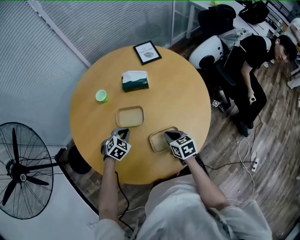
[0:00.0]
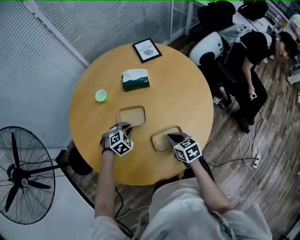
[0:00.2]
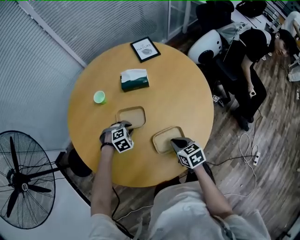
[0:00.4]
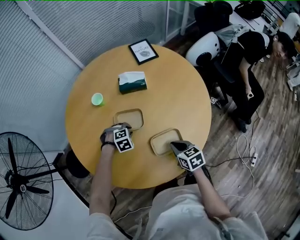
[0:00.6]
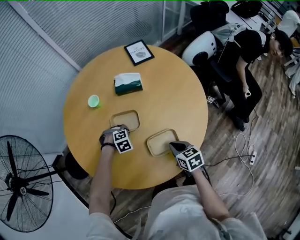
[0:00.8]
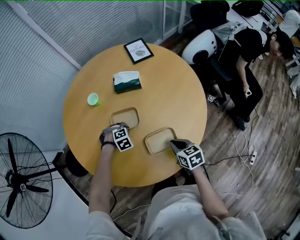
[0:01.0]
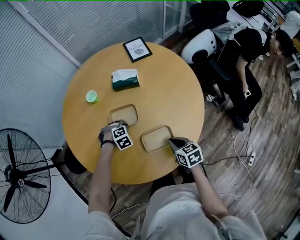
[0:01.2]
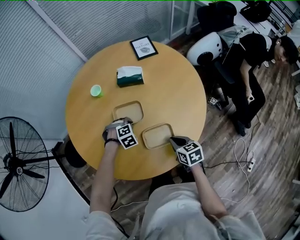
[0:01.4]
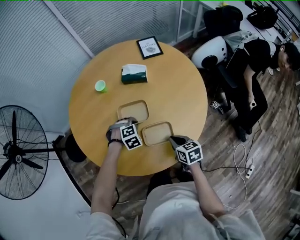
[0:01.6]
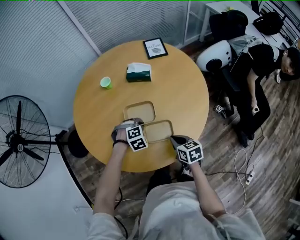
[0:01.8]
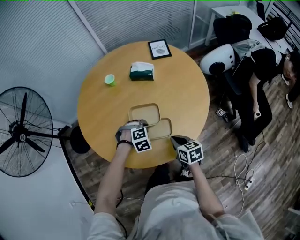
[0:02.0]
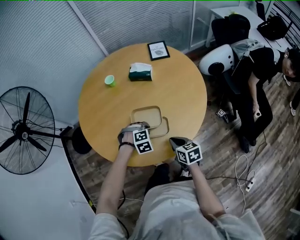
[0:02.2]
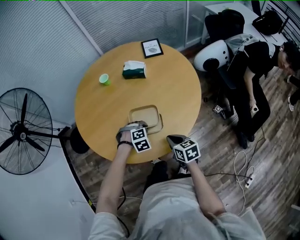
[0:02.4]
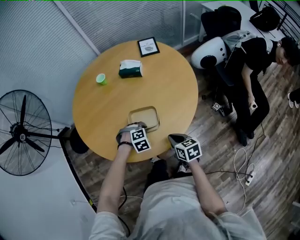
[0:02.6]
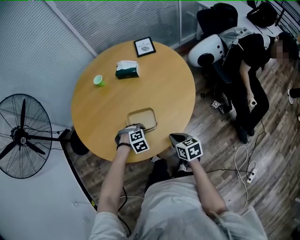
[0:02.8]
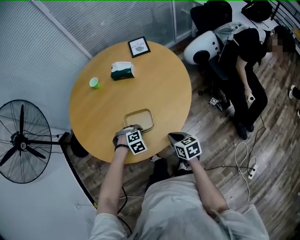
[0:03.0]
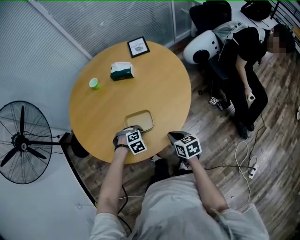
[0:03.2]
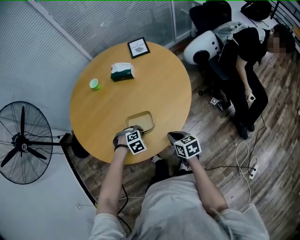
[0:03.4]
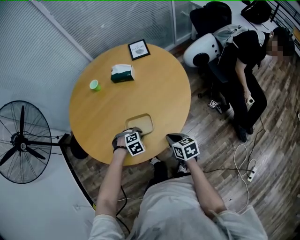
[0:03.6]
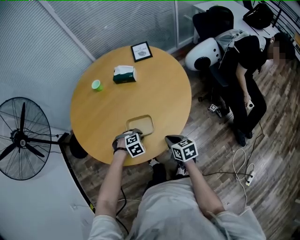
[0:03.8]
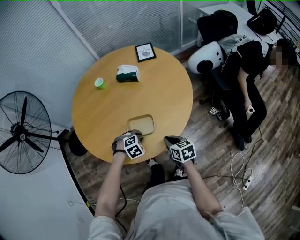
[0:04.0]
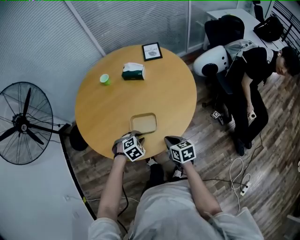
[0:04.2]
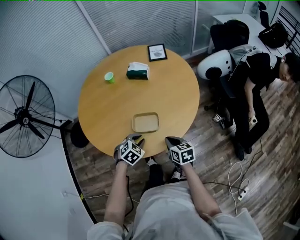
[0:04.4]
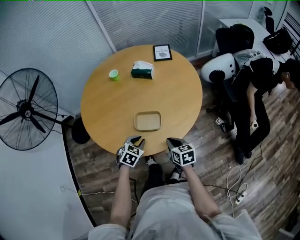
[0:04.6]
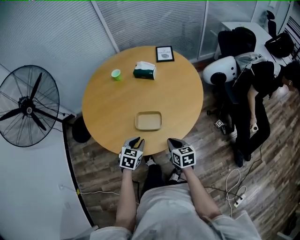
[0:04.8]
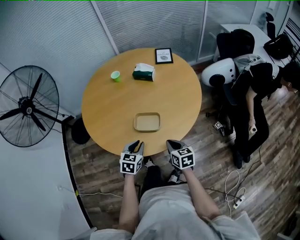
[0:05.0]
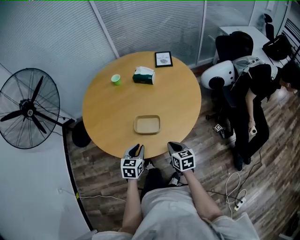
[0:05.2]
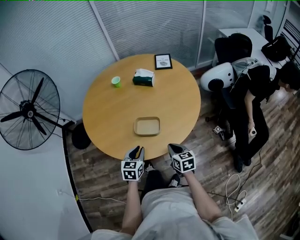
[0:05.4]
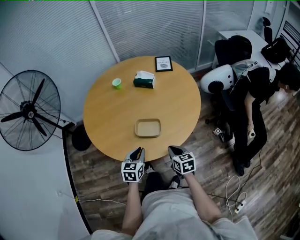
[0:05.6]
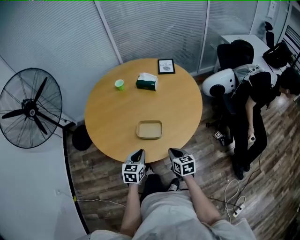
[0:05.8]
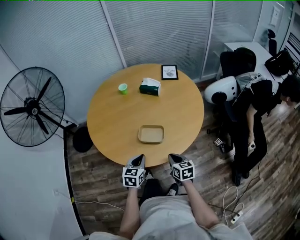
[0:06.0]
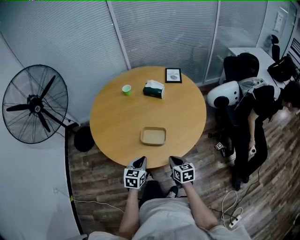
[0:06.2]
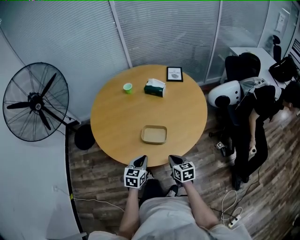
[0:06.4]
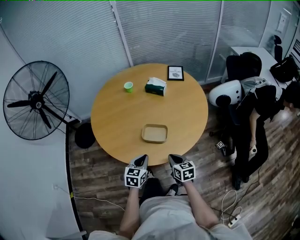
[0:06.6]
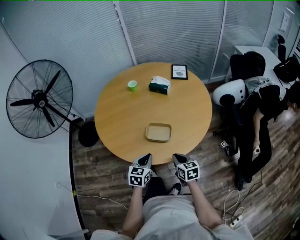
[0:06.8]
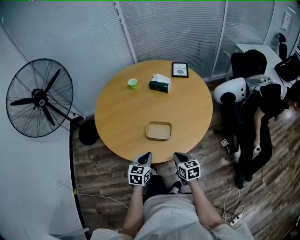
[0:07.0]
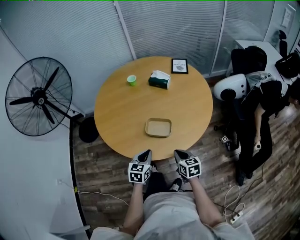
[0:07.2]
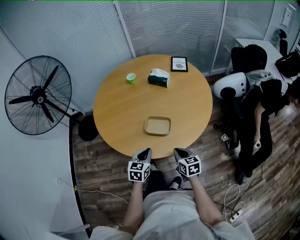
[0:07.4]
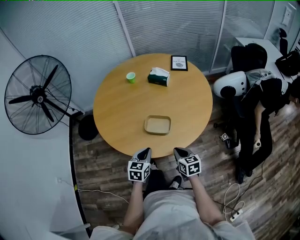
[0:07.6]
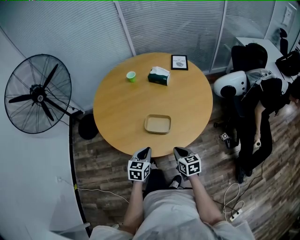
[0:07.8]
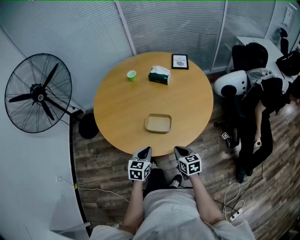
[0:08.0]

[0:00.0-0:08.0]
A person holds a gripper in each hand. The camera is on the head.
0:00.0 to 0:01.6: The right gripper moves approximately 10 cm; the left gripper goes downward and returns, some 10 cm each way, and changes its angle by some 30 degrees.
0:01.6 to 0:03.2: The right gripper ends up some 10 cm from where it was. The left gripper moves about 15 cm.
0:03.2 to 0:04.8: The left gripper heads upward, covering some 10 cm, and twists about 60 degrees counterclockwise, seen from behind.
0:04.8 to 0:06.4: There are only small adjustments of the grippers.
0:06.4 to 0:08.0: Both grippers stay about where they are.

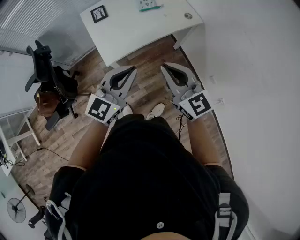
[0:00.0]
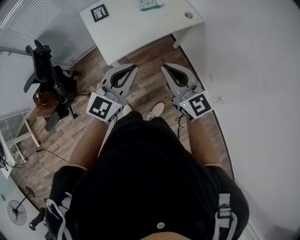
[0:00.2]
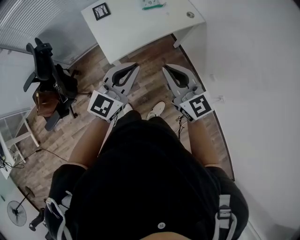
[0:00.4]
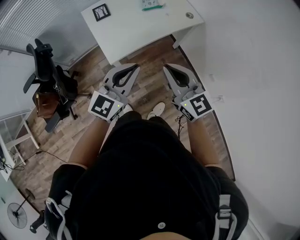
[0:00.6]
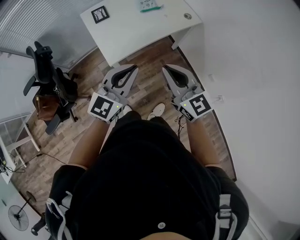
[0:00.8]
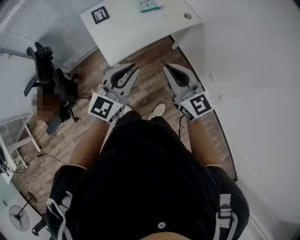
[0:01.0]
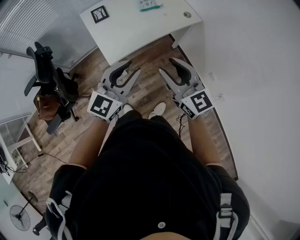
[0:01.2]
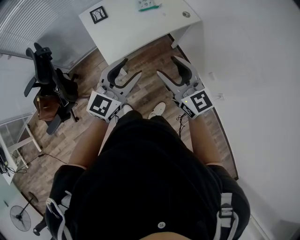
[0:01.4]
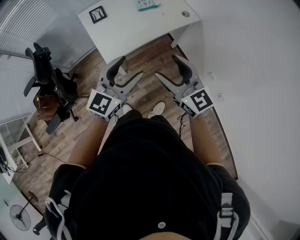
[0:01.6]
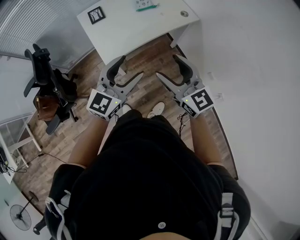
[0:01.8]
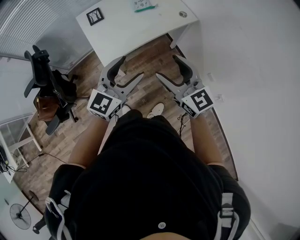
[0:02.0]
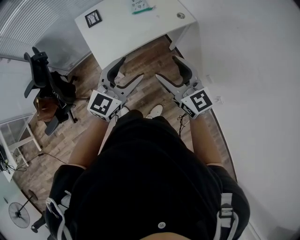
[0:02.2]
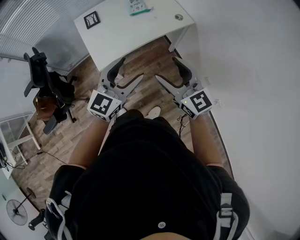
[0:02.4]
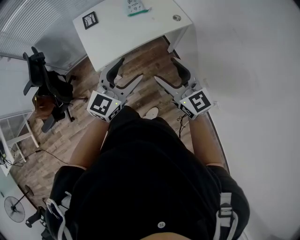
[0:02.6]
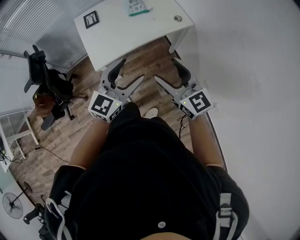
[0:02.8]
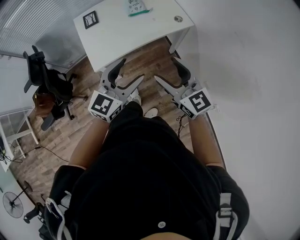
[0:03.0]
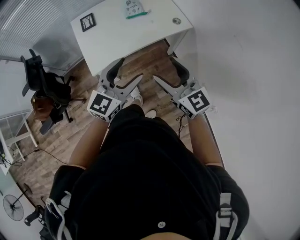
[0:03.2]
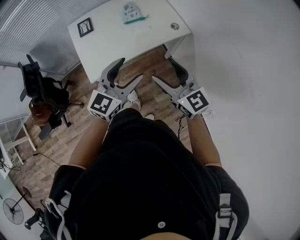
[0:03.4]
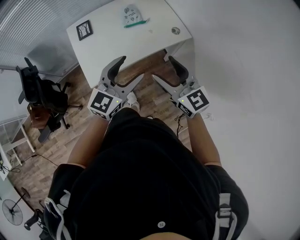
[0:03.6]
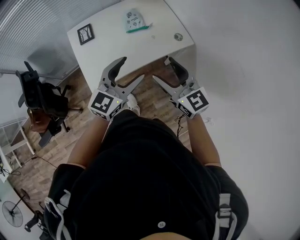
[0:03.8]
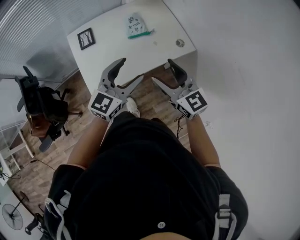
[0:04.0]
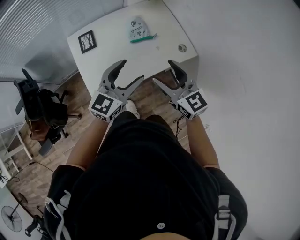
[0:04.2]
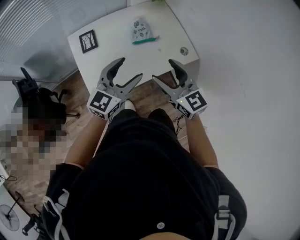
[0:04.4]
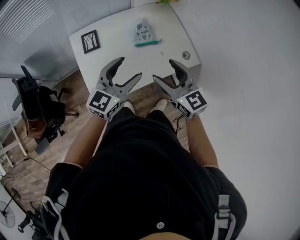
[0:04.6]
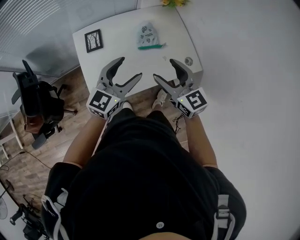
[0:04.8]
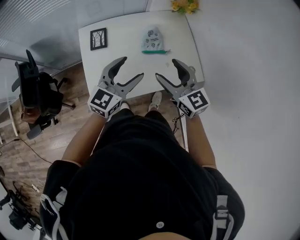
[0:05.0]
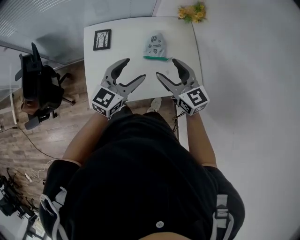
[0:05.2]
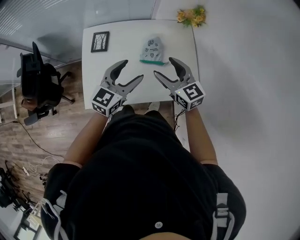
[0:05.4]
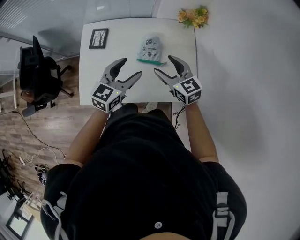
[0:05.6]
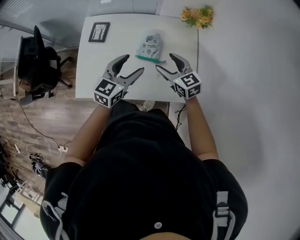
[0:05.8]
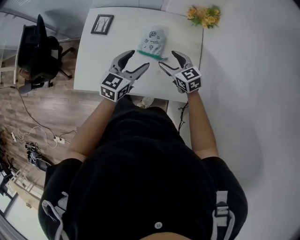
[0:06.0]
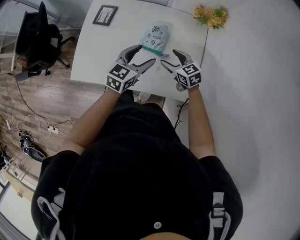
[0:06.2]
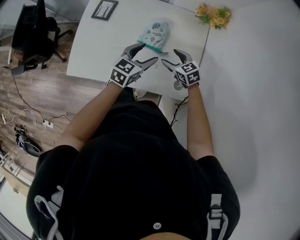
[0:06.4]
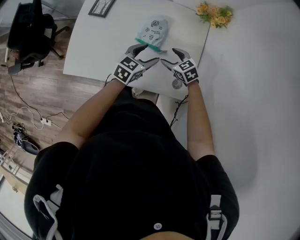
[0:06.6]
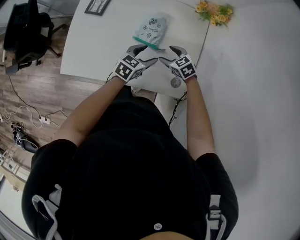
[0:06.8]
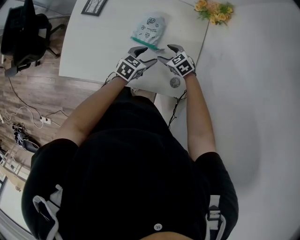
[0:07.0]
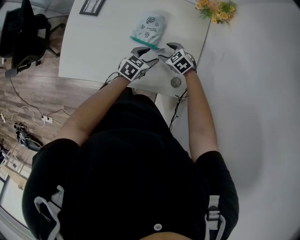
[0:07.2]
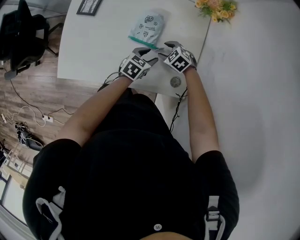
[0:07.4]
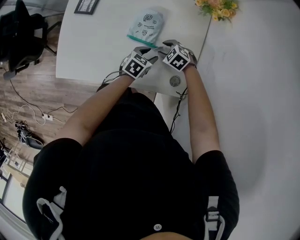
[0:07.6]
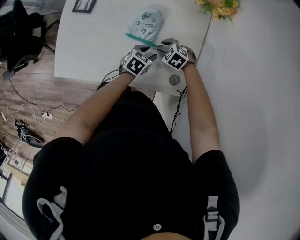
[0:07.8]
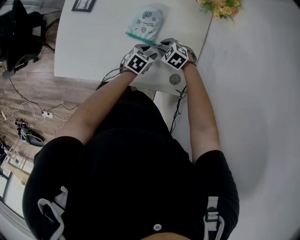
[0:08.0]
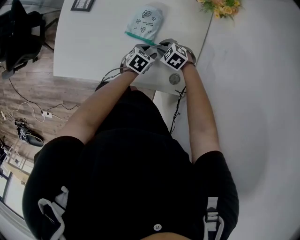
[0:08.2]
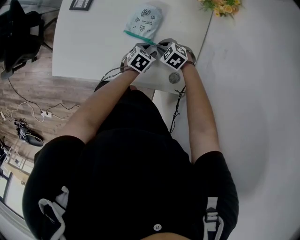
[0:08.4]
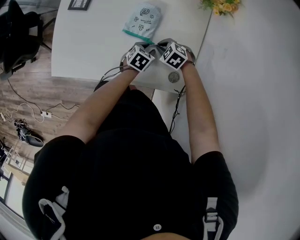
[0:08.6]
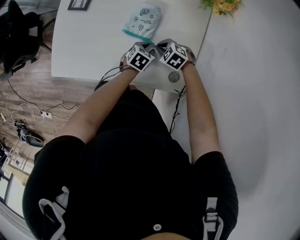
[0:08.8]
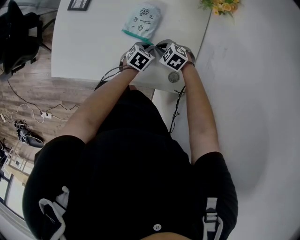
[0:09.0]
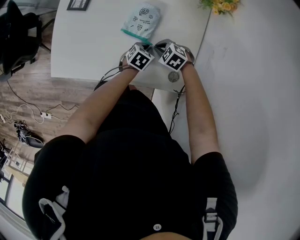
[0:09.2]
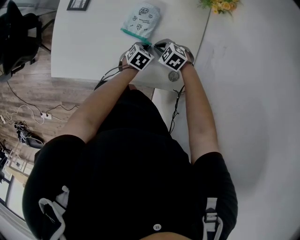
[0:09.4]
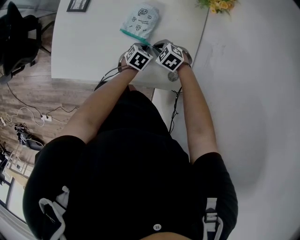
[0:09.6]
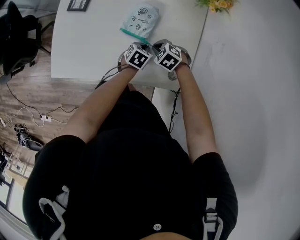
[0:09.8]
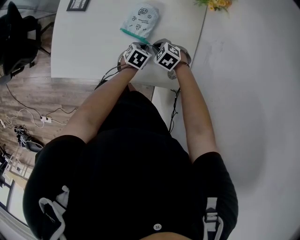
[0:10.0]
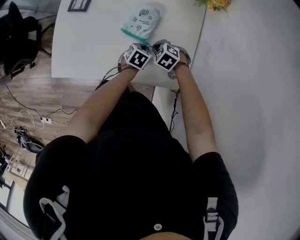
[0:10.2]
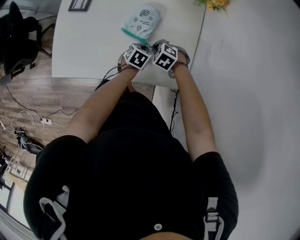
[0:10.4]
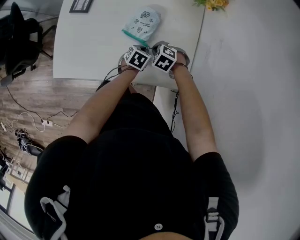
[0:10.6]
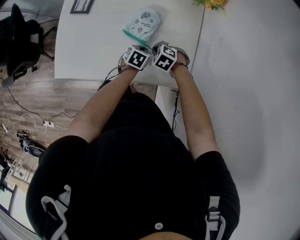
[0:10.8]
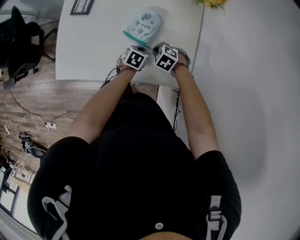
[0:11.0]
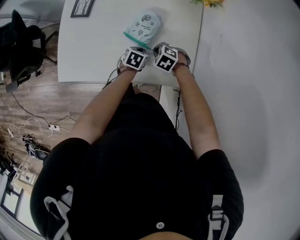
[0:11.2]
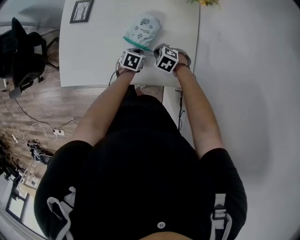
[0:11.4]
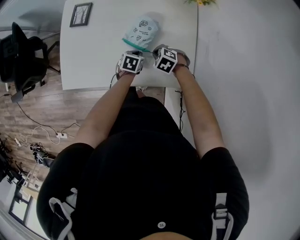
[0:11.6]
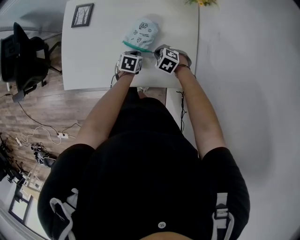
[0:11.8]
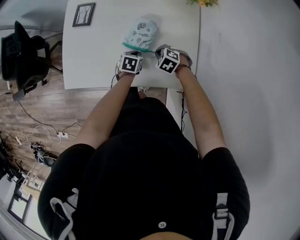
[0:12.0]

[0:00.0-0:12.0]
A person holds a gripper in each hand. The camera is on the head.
0:00.0 to 0:01.6: The right gripper opens its fingers. The left gripper opens its fingers.
0:01.6 to 0:03.0: Both grippers travel together to the right, approximately 15 cm.
0:03.0 to 0:04.4: Both grippers travel together forward, approximately 25 cm.
0:04.4 to 0:06.0: The right gripper ends up about 35 cm from where it was, and turns by some 40 degrees, while the left gripper shifts by some 25 cm, and turns by about 40 degrees.
0:06.0 to 0:07.6: Both grippers move downward, roughly 20 cm. The left gripper rotates roughly 30 degrees, and closes. Meanwhile the right gripper tilts its fingers about 30 degrees downward, and closes.
0:07.6 to 0:09.0: The right gripper closes.
0:09.0 to 0:10.4: The grippers stay close to where they were, moving slightly.
0:10.4 to 0:12.0: The left gripper ends up roughly 5 cm from where it was.

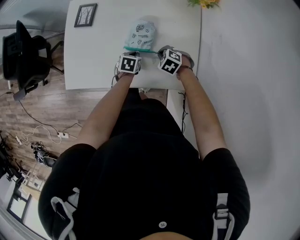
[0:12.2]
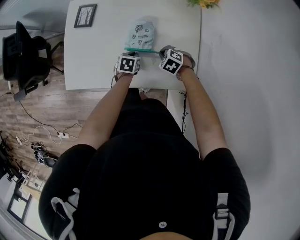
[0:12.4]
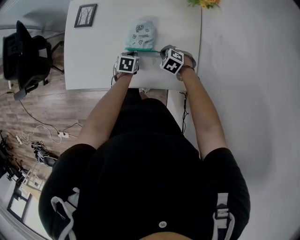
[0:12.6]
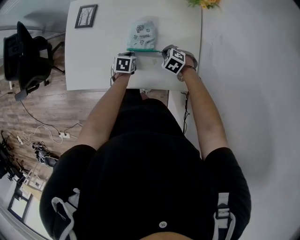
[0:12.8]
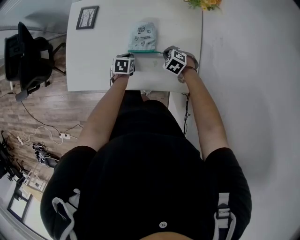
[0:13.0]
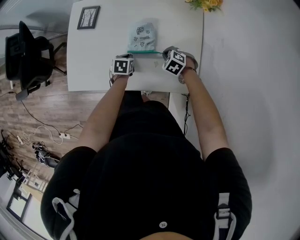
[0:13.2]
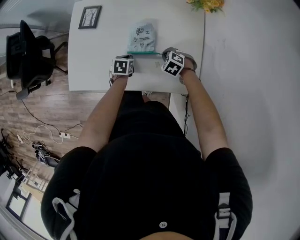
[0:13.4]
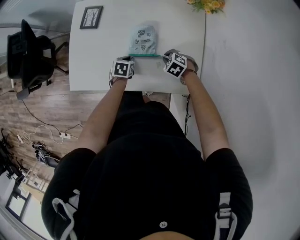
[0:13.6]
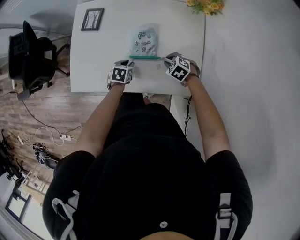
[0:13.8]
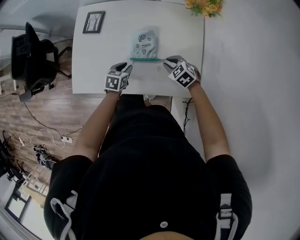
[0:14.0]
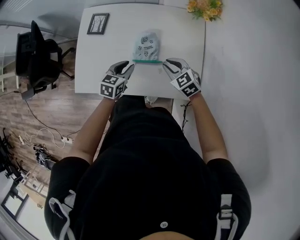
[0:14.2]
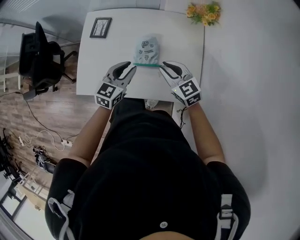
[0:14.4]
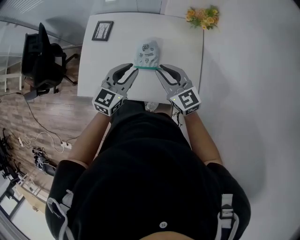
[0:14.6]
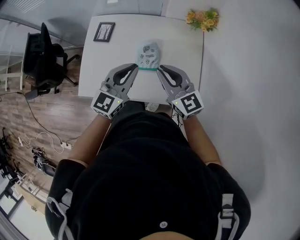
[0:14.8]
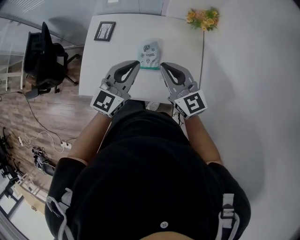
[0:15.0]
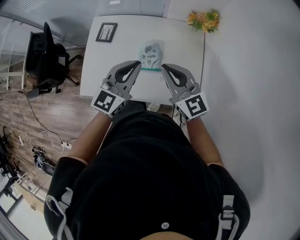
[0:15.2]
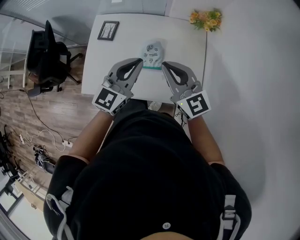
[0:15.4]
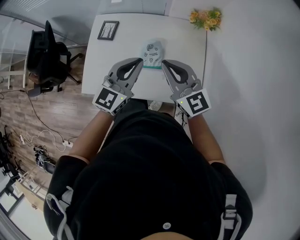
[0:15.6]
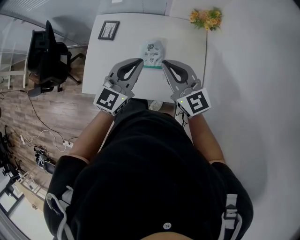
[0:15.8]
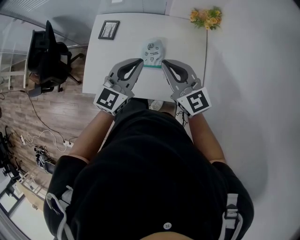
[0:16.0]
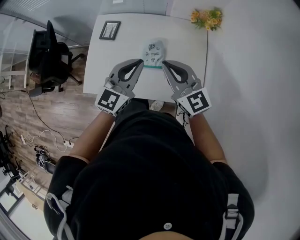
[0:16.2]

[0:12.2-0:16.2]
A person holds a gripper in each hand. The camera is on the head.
0:12.2 to 0:13.6: The left gripper goes about 5 cm to the left.
0:13.6 to 0:14.8: The two grippers go some 35 cm upward. The right gripper tilts its fingers approximately 60 degrees upward, while the left gripper tilts its fingers approximately 50 degrees upward.
0:14.8 to 0:16.2: The grippers stay close to where they were, moving slightly.
